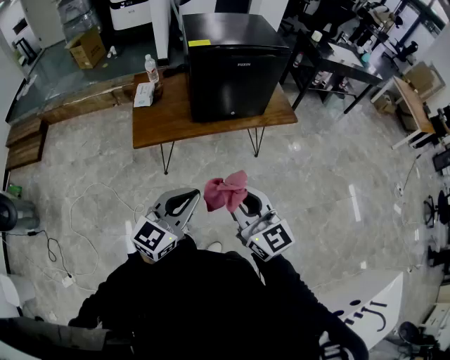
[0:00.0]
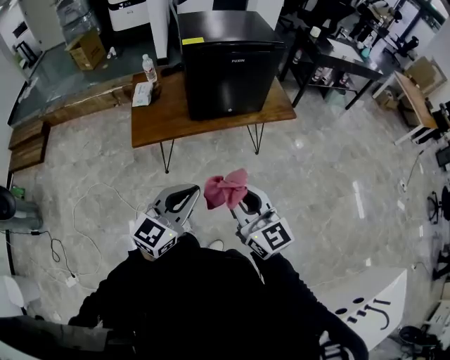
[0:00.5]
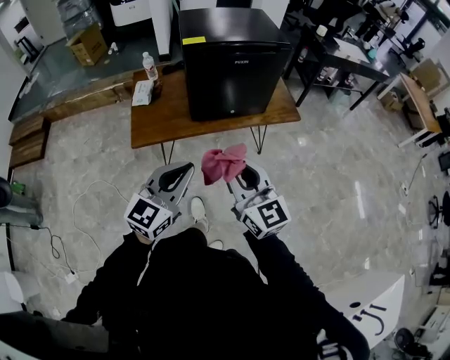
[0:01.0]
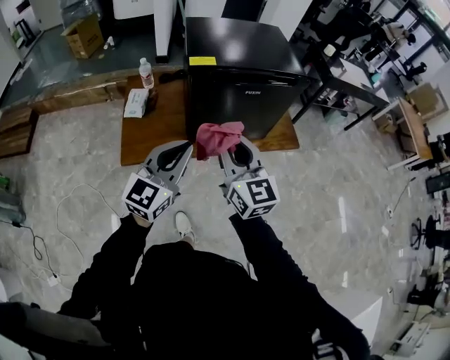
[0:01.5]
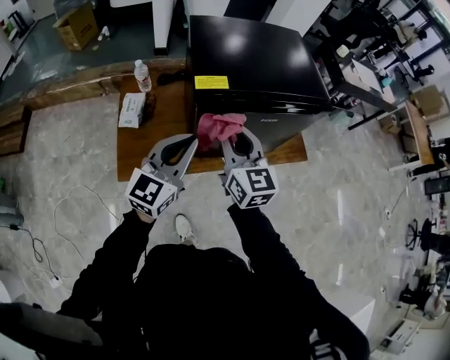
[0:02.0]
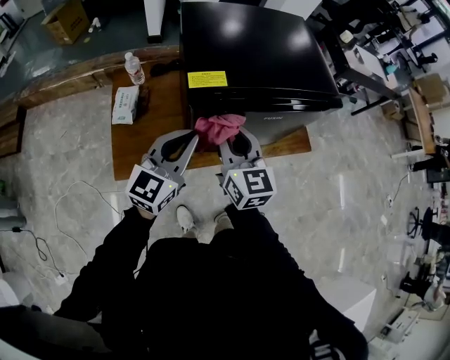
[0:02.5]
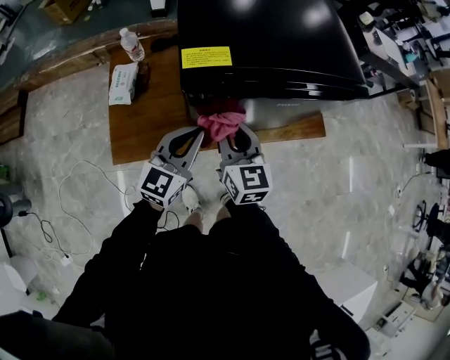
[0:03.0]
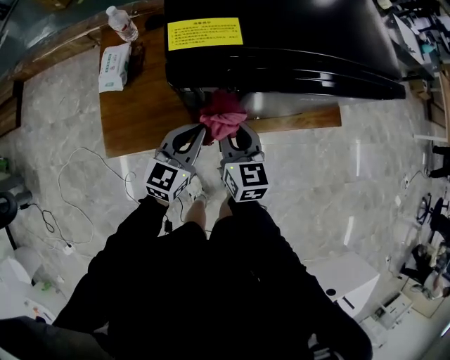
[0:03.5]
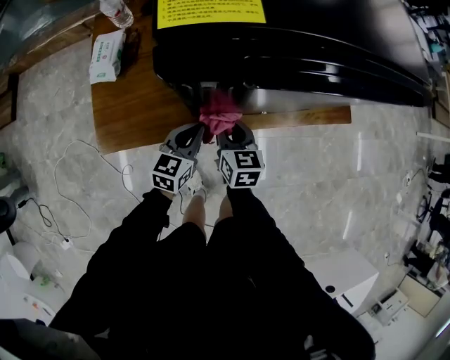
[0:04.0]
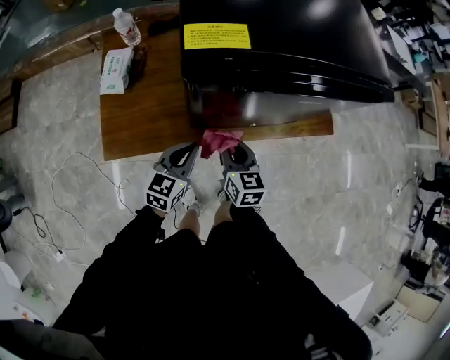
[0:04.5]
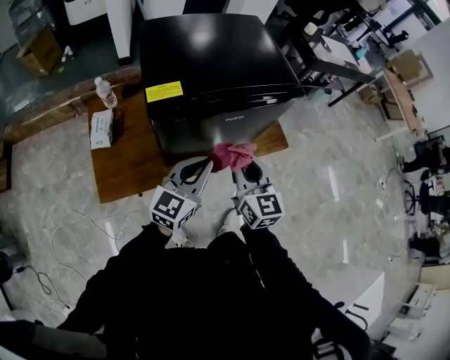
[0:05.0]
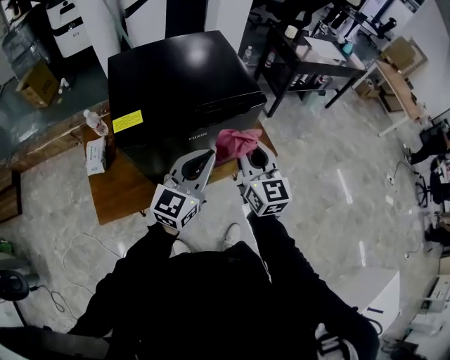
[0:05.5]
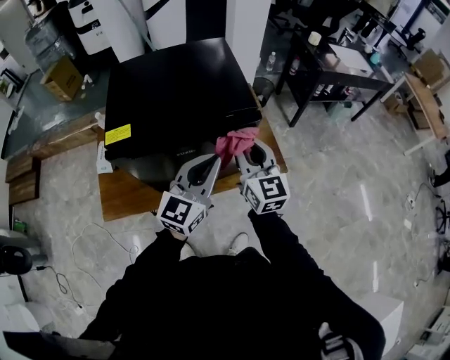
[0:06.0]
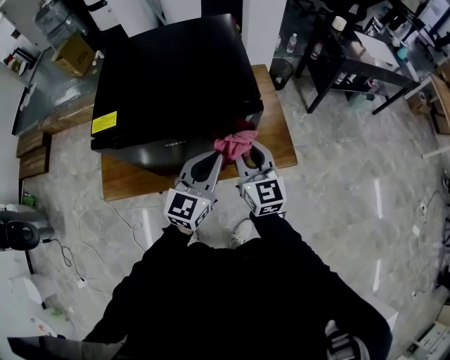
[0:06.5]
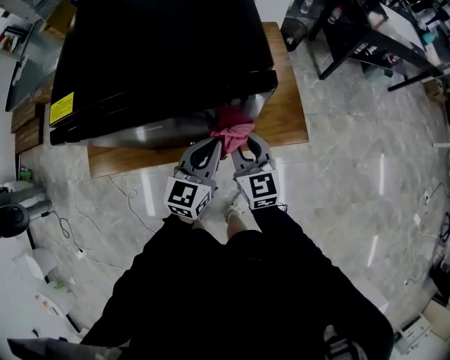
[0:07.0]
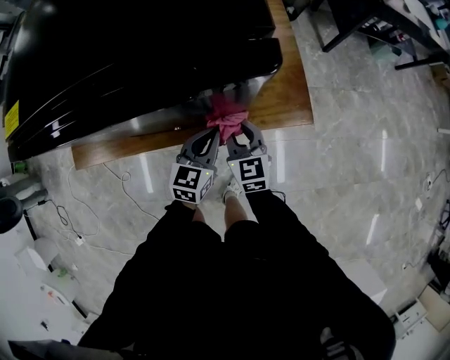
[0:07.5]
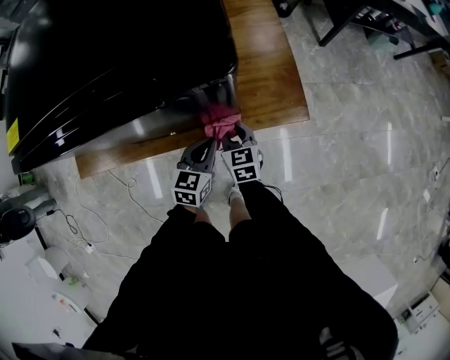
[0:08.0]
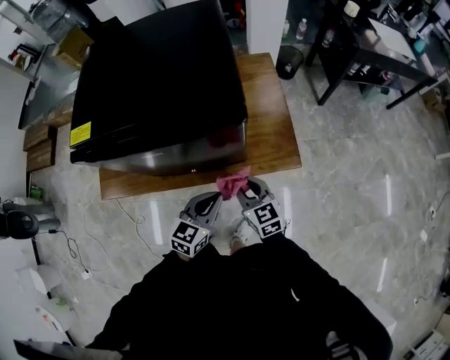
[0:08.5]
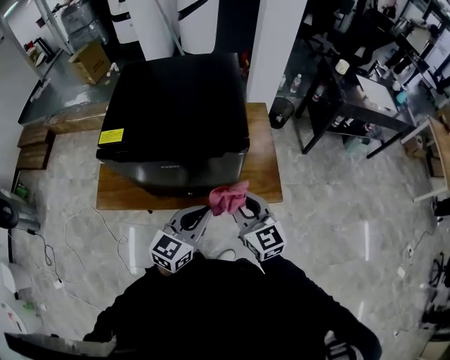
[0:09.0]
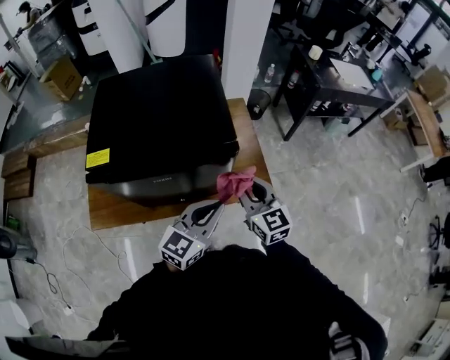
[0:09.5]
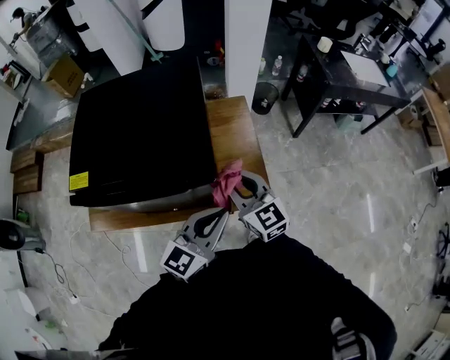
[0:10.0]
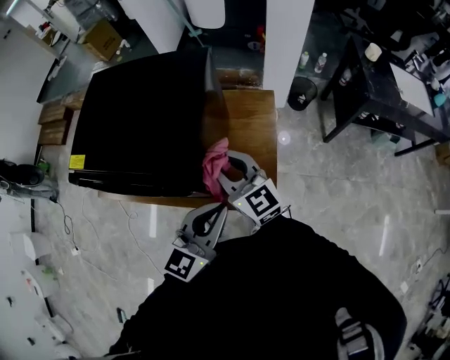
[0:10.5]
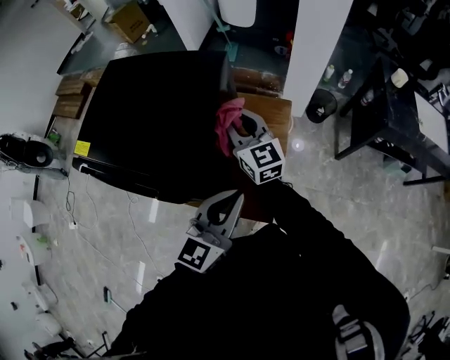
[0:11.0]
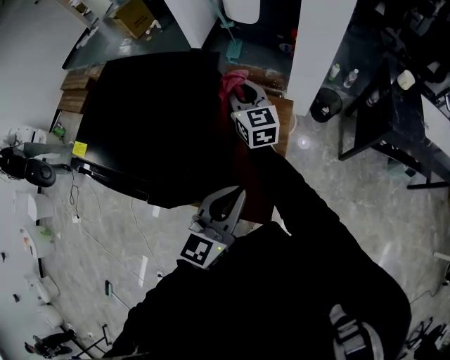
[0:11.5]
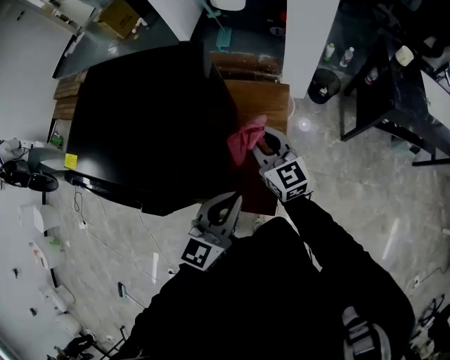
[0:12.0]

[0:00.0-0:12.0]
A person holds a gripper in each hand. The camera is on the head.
0:00.0 to 0:02.0: Both grippers are carried forward, roughly 50 cm.
0:02.0 to 0:04.0: Both grippers move downward, approximately 40 cm. The right gripper changes its angle by some 30 degrees. Meanwhile the left gripper swivels about 30 degrees.
0:04.0 to 0:06.0: The two grippers go about 50 cm upward and to the right. The right gripper tips its fingers upward by some 30 degrees; the left gripper changes its angle by roughly 30 degrees.
0:06.0 to 0:08.0: Both grippers travel together downward, approximately 40 cm. The left gripper angles its fingers downward, by roughly 30 degrees, while the right gripper tips its fingers downward by some 30 degrees.
0:08.0 to 0:10.0: Both grippers travel together upward, roughly 40 cm. The right gripper rotates roughly 30 degrees. The left gripper changes its angle by some 30 degrees.
0:10.0 to 0:12.0: The right gripper moves forward and to the right, roughly 25 cm, while the left gripper goes about 20 cm forward, to the right and downward, and changes its angle by some 30 degrees.

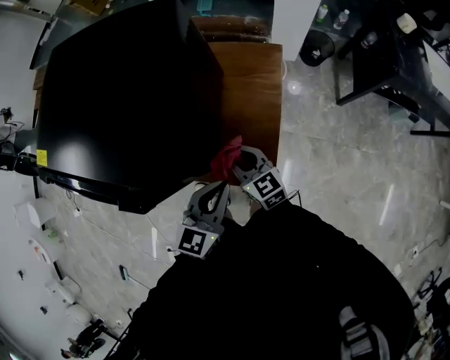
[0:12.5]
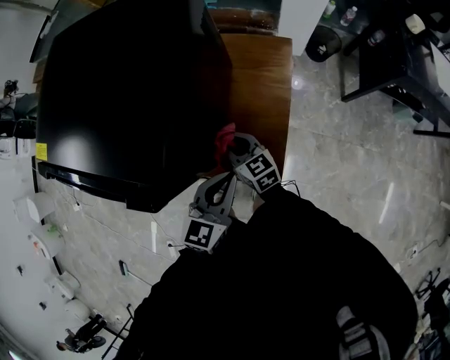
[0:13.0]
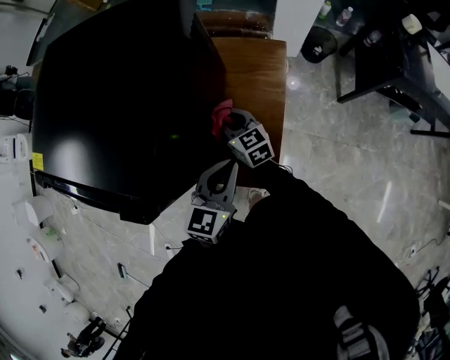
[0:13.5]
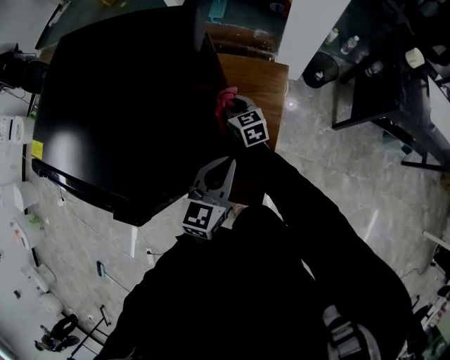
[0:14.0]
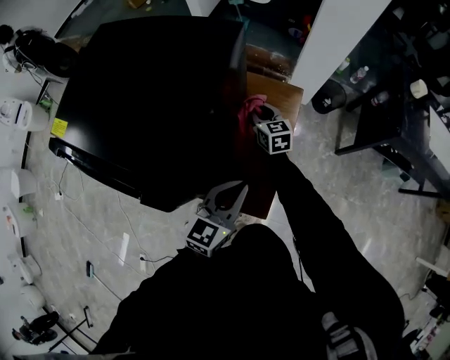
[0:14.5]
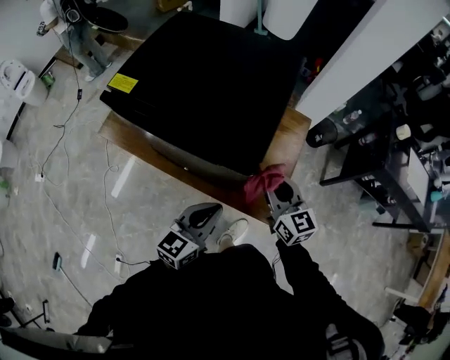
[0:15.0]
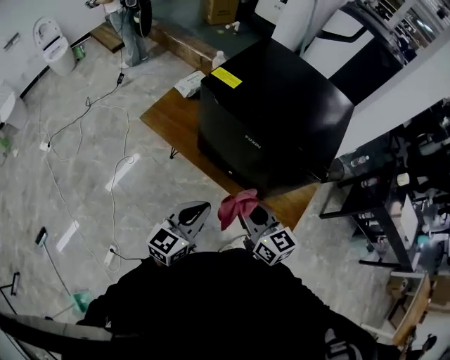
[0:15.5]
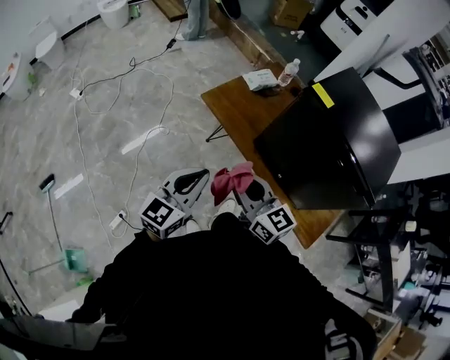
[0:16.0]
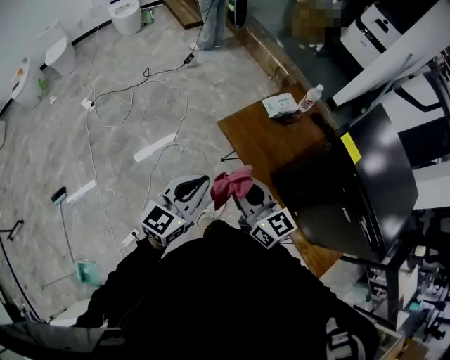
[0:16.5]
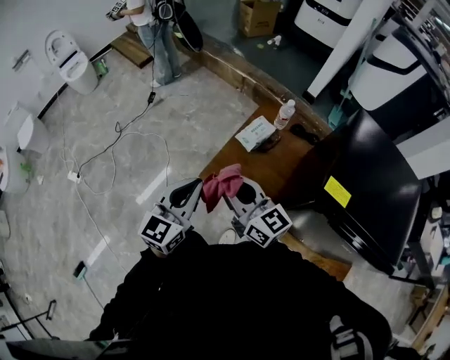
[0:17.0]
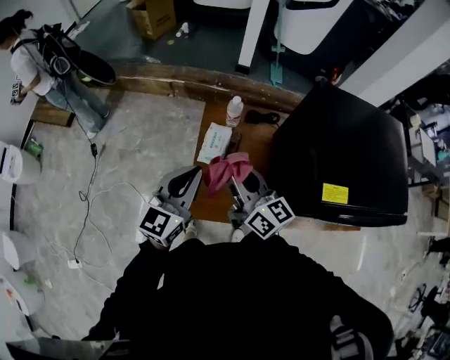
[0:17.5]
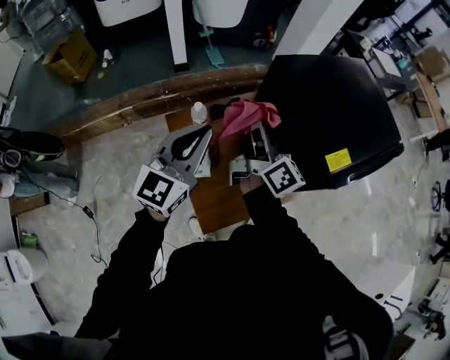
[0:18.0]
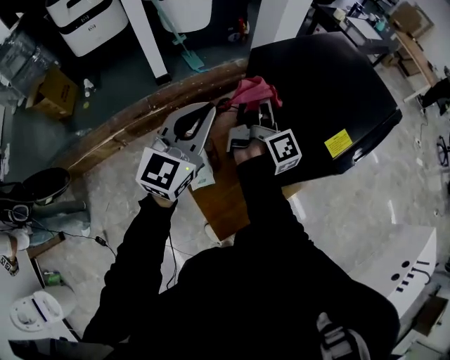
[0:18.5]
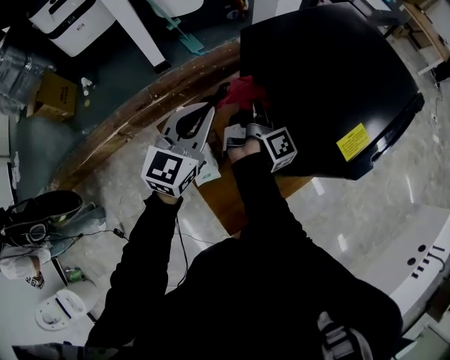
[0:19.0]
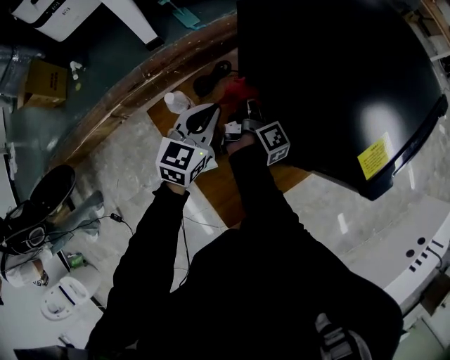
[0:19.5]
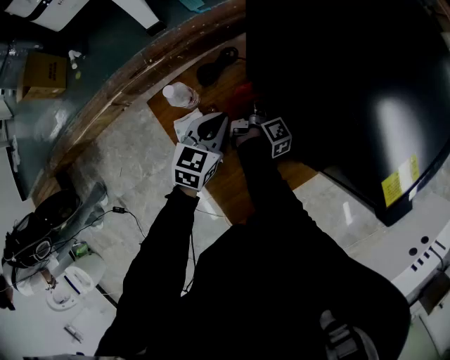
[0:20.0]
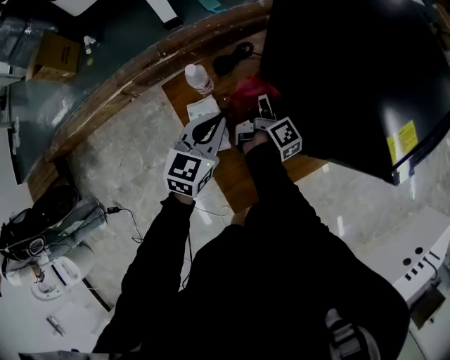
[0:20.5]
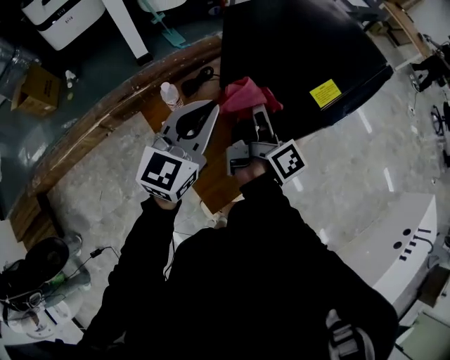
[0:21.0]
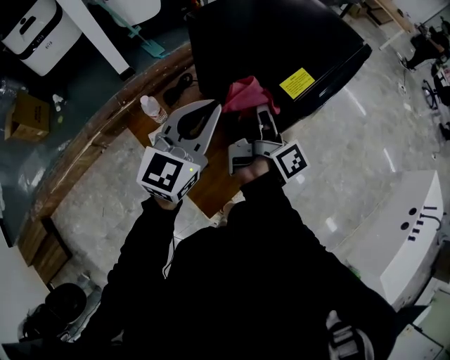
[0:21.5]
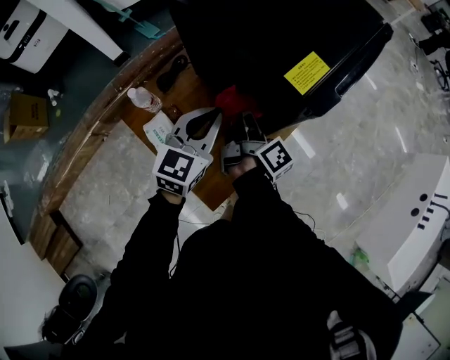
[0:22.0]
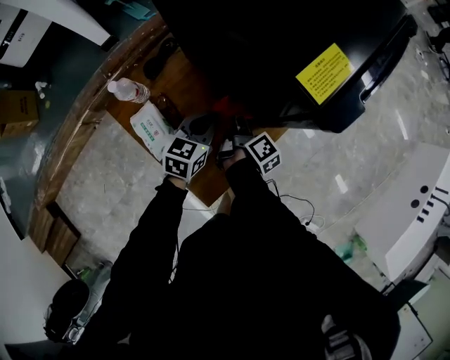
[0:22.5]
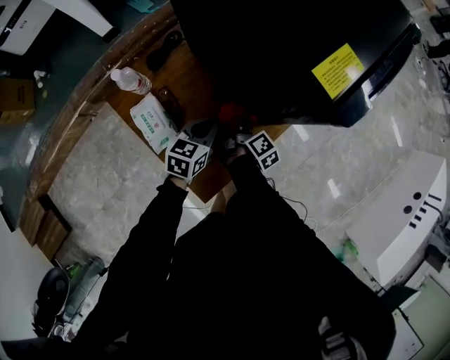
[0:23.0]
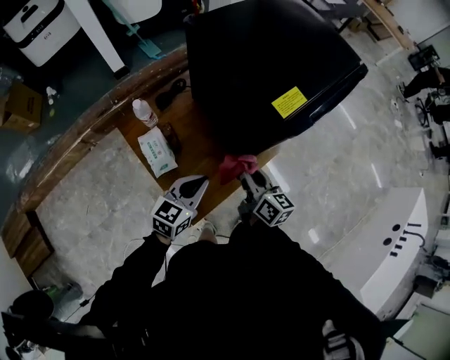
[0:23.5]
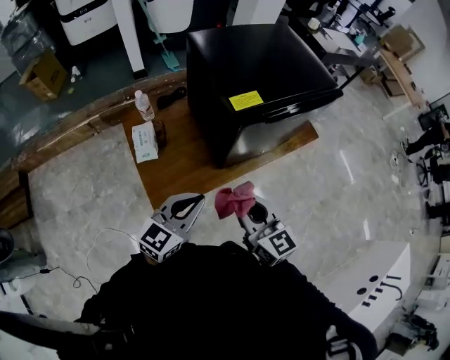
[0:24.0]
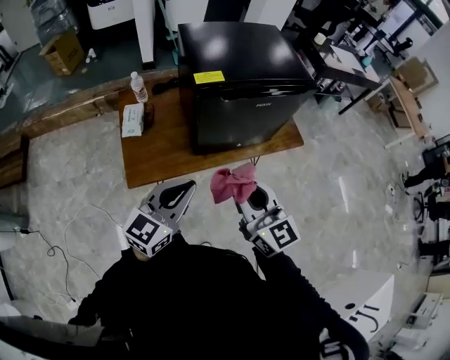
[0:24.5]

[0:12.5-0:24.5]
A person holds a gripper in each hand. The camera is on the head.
0:12.5 to 0:14.5: The right gripper travels forward by approximately 25 cm. The left gripper goes some 5 cm forward.
0:14.5 to 0:16.5: The pair of grippers is taken some 80 cm. The right gripper rotates approximately 50 degrees; the left gripper swivels some 30 degrees.
0:16.5 to 0:18.5: The two grippers travel together, about 60 cm. The right gripper rotates some 130 degrees. The left gripper swivels roughly 80 degrees.
0:18.5 to 0:20.5: The two grippers go about 30 cm downward. The right gripper turns by roughly 20 degrees; the left gripper rotates approximately 30 degrees.
0:20.5 to 0:22.5: The left gripper goes roughly 20 cm to the right, goes upward and returns, roughly 30 cm each way, and rotates some 20 degrees; the right gripper goes roughly 25 cm to the right and backward, and goes upward and returns, about 30 cm each way.
0:22.5 to 0:24.5: The right gripper moves upward, about 40 cm, and rotates some 100 degrees. The left gripper shifts by approximately 50 cm, and changes its angle by approximately 30 degrees.

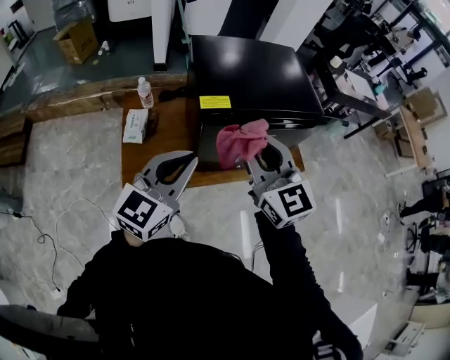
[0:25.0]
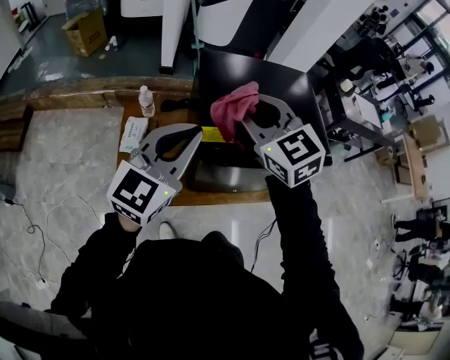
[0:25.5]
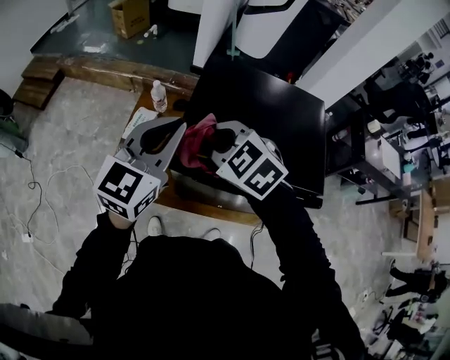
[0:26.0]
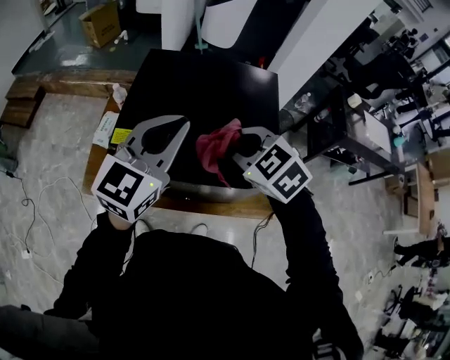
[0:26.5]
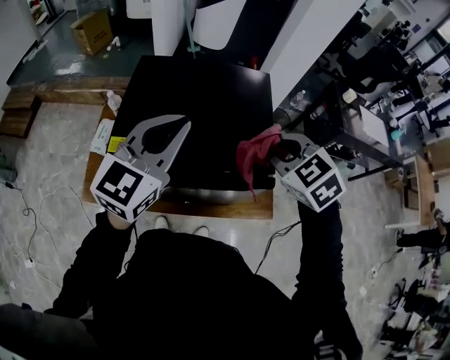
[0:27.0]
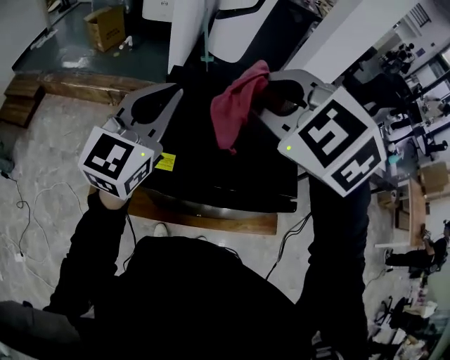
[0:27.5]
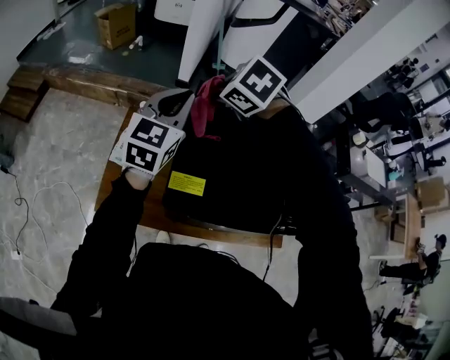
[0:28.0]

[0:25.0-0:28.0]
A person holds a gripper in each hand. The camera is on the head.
0:25.0 to 0:26.5: The left gripper shifts by about 30 cm. Meanwhile the right gripper changes place by approximately 25 cm, and angles its fingers downward, by about 40 degrees.
0:26.5 to 0:28.0: The grippers both shift forward and to the left by approximately 30 cm.
